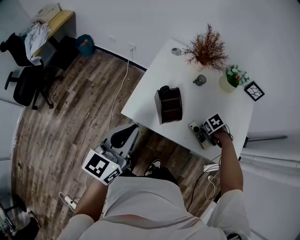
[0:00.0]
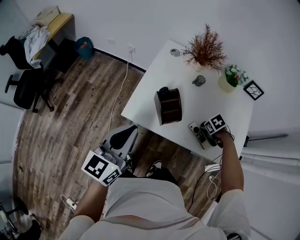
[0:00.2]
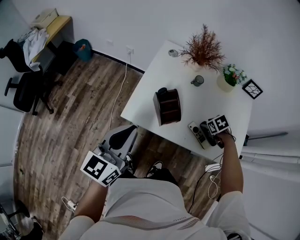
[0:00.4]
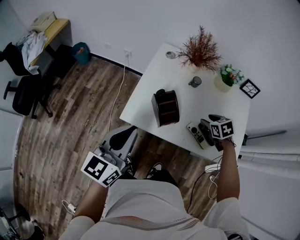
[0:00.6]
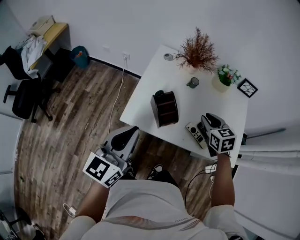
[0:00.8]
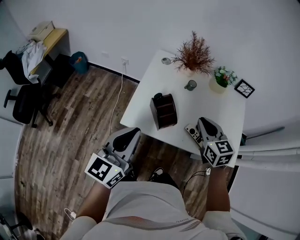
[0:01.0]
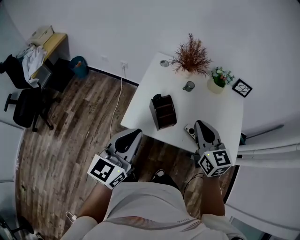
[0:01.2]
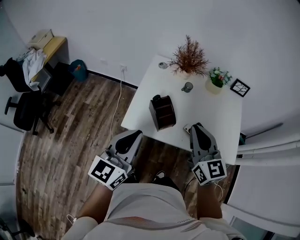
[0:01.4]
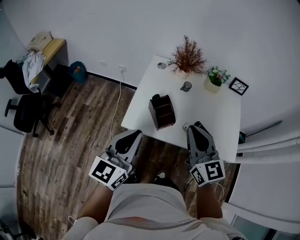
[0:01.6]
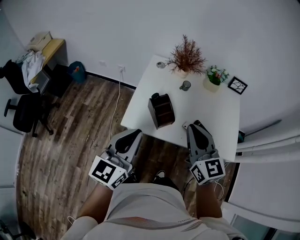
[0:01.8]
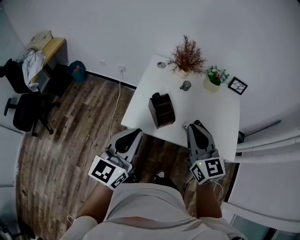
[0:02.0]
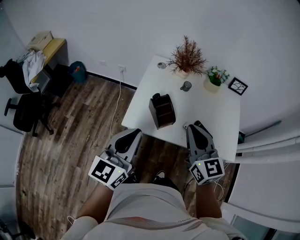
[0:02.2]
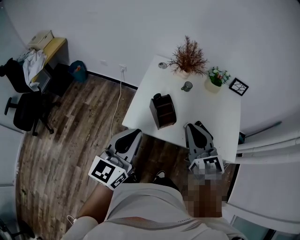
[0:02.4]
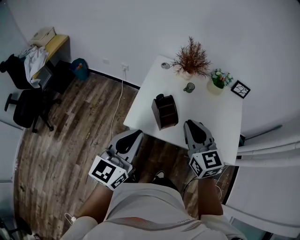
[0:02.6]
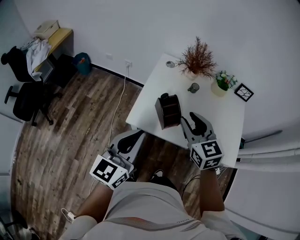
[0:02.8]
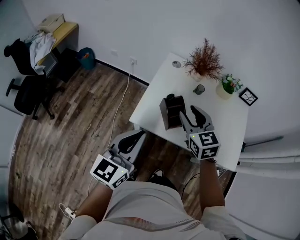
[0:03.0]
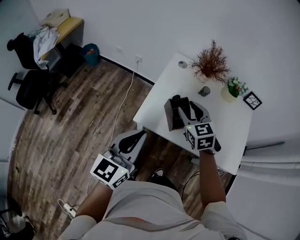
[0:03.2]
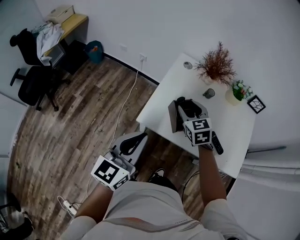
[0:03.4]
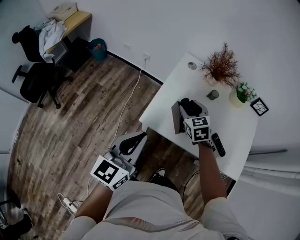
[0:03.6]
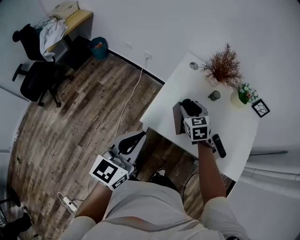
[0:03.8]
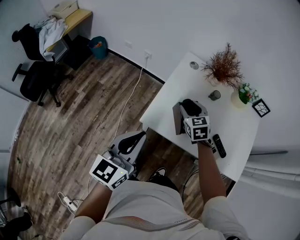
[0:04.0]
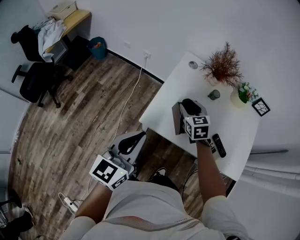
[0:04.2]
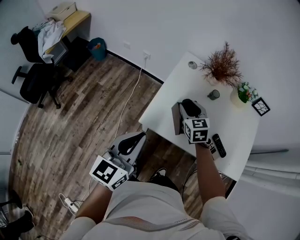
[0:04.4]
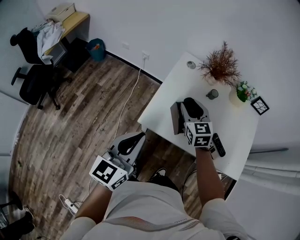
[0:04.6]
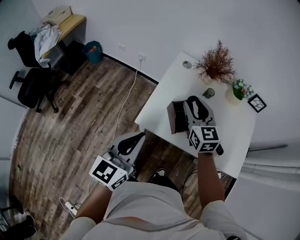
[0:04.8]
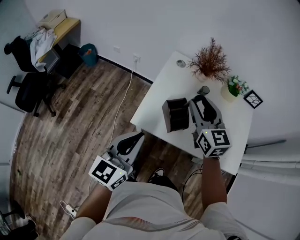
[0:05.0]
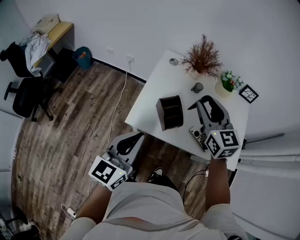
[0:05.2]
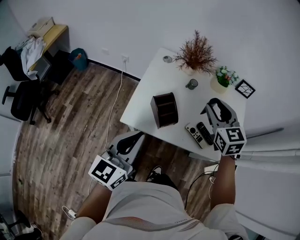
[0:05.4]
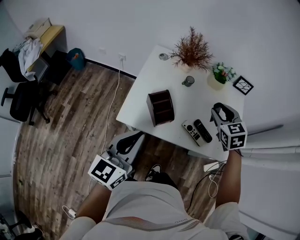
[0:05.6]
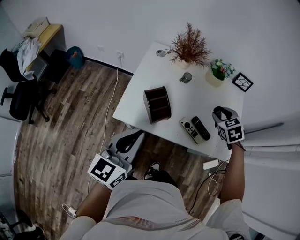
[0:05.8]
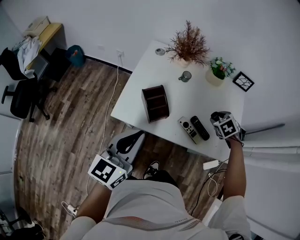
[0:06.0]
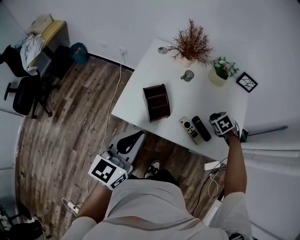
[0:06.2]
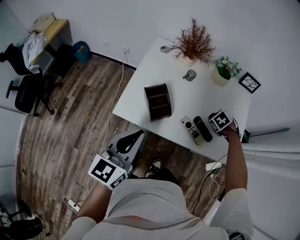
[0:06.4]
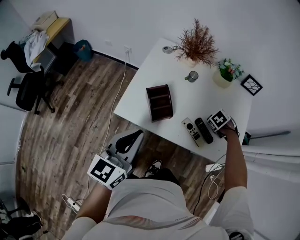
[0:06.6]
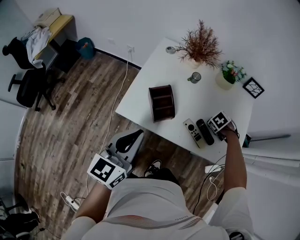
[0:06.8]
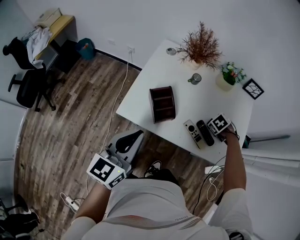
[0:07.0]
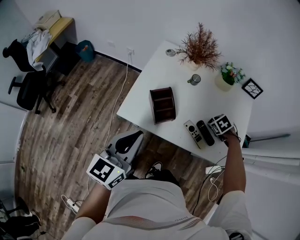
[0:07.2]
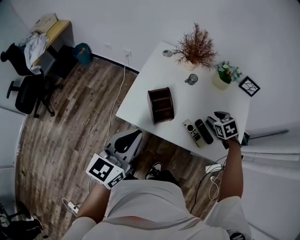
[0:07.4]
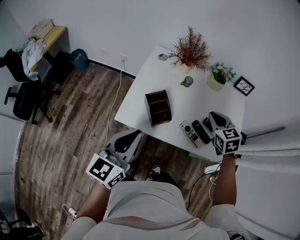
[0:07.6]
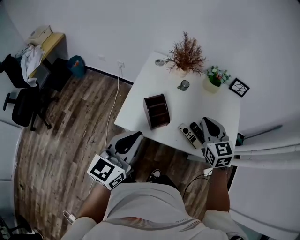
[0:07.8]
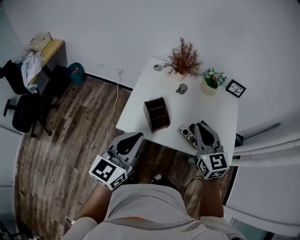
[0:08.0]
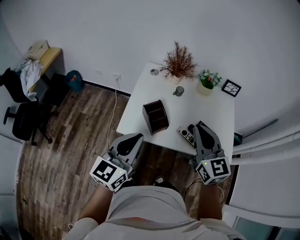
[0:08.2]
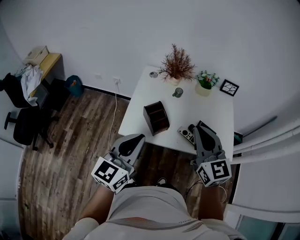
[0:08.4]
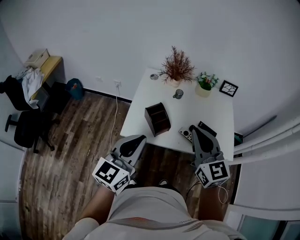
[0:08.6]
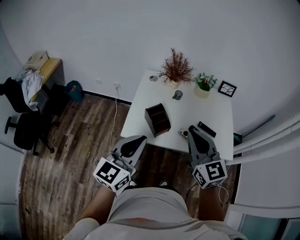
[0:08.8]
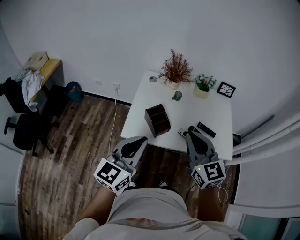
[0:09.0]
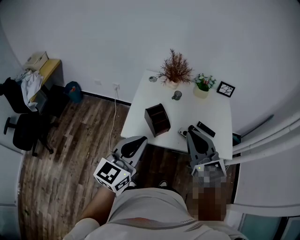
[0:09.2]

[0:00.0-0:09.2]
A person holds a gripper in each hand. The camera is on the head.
0:00.0 to 0:01.6: The left gripper is displaced upward by approximately 5 cm. Meanwhile the right gripper is displaced upward by about 35 cm, angles its fingers upward, by some 80 degrees, and closes its fingers.
0:01.6 to 0:03.0: The right gripper moves forward, downward and to the left, about 15 cm, rotates about 20 degrees, and opens its fingers.
0:03.0 to 0:04.6: The right gripper heads forward and downward, covering approximately 10 cm.
0:04.6 to 0:06.2: The left gripper goes about 15 cm to the right. The right gripper is displaced to the right by about 35 cm, and tilts its fingers approximately 50 degrees downward.
0:06.2 to 0:07.6: The right gripper heads upward, covering some 15 cm, angles its fingers upward, by some 40 degrees, and closes.
0:07.6 to 0:09.2: The left gripper travels upward by roughly 5 cm. Meanwhile the right gripper moves backward, upward and to the left, approximately 25 cm, and tips its fingers upward by roughly 30 degrees.

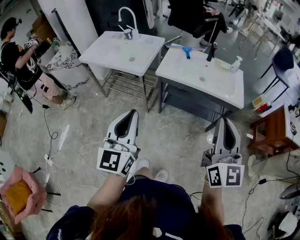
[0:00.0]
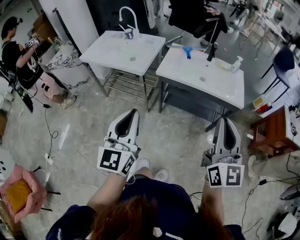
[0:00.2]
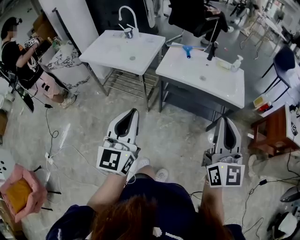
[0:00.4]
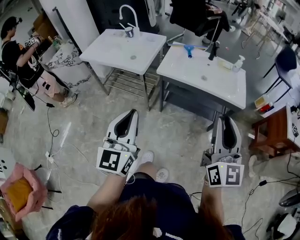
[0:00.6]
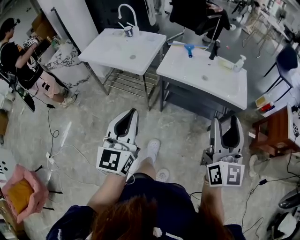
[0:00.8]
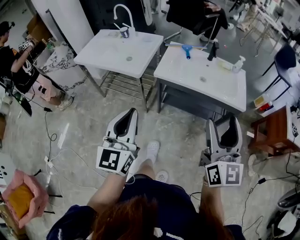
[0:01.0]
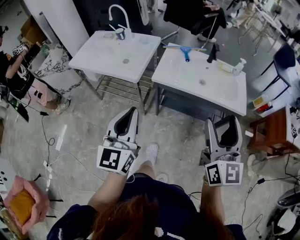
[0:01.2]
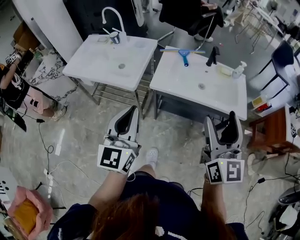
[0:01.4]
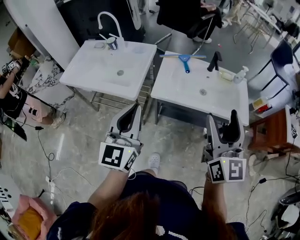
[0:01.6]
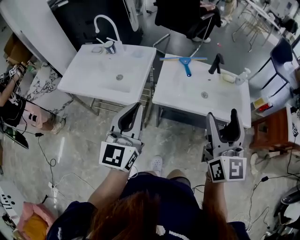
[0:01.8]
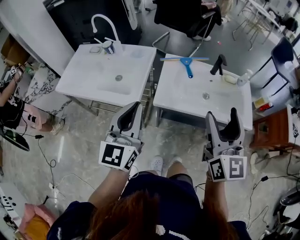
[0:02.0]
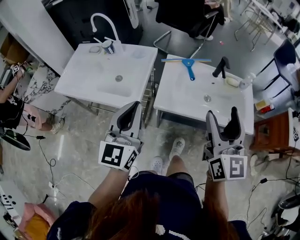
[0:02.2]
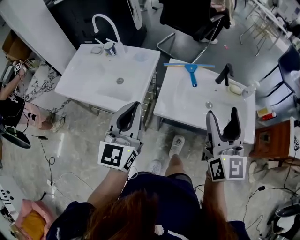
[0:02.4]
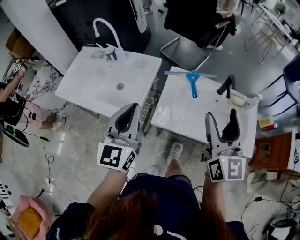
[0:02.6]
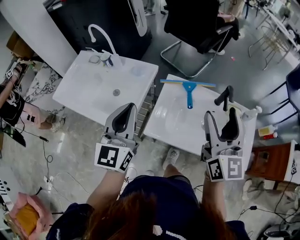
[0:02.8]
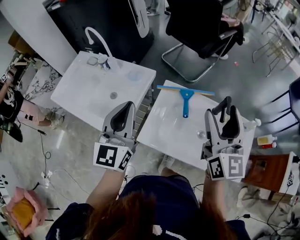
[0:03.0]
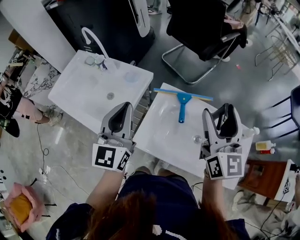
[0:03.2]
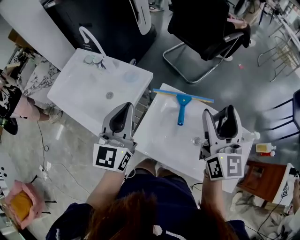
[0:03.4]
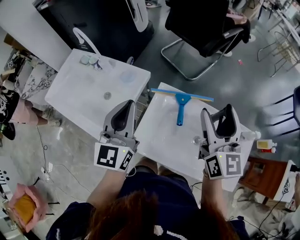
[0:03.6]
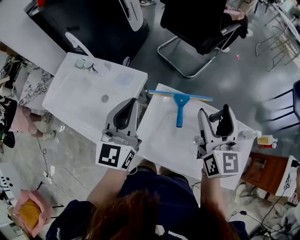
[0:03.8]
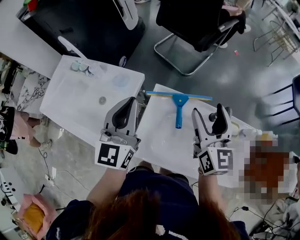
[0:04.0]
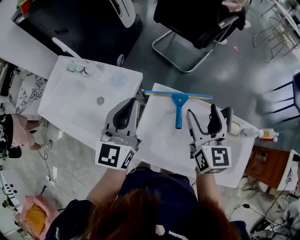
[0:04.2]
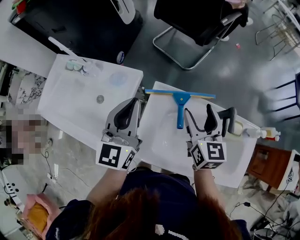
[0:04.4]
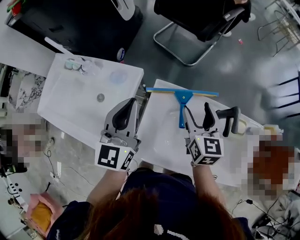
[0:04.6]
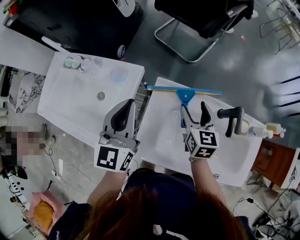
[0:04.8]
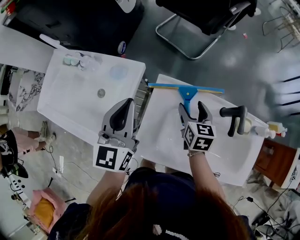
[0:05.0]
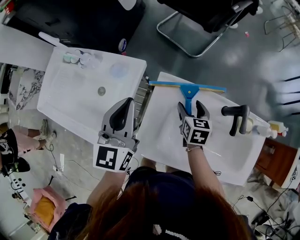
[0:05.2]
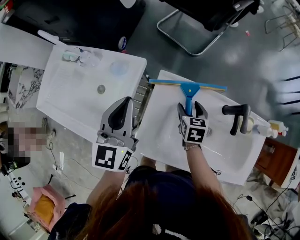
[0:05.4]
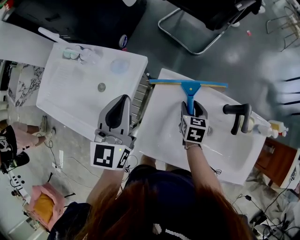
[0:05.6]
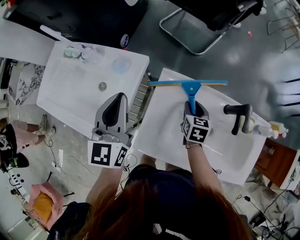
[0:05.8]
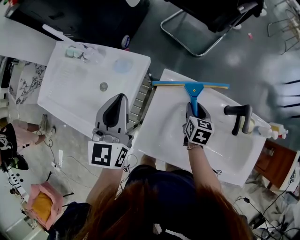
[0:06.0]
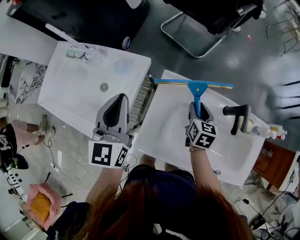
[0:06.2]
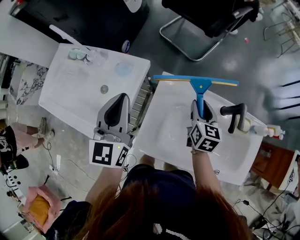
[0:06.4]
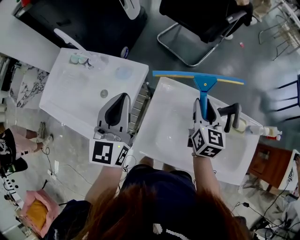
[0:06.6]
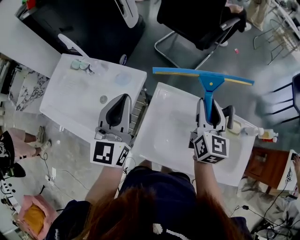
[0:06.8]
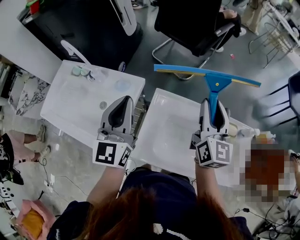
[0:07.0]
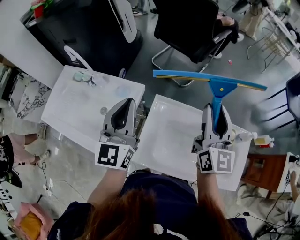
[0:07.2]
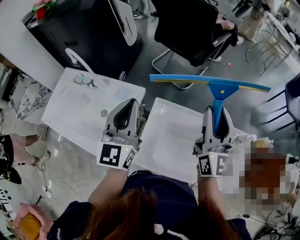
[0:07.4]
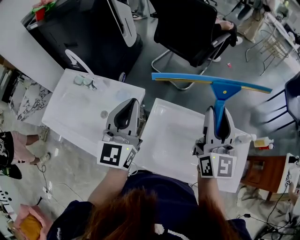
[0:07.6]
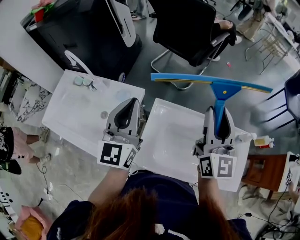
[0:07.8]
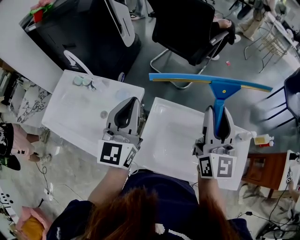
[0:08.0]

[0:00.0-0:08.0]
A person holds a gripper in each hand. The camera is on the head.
0:00.0 to 0:01.6: The two grippers go roughly 25 cm forward. The right gripper opens.
0:01.6 to 0:03.2: Both grippers move forward, some 40 cm.
0:03.2 to 0:04.8: The left gripper heads forward and downward, covering approximately 15 cm, while the right gripper shifts about 30 cm downward and forward, and tips its fingers downward by about 30 degrees.
0:04.8 to 0:06.4: The right gripper moves approximately 10 cm downward and comes back, and closes.
0:06.4 to 0:08.0: The right gripper moves upward, approximately 30 cm, and points its fingers approximately 40 degrees further upward; the left gripper is displaced upward by some 10 cm.

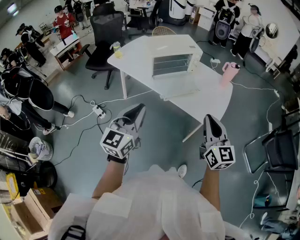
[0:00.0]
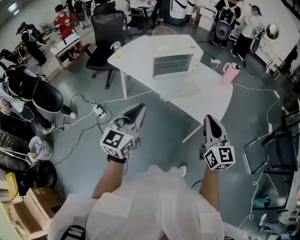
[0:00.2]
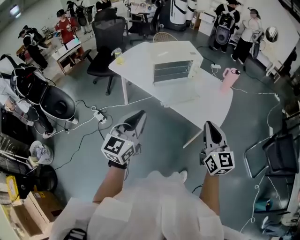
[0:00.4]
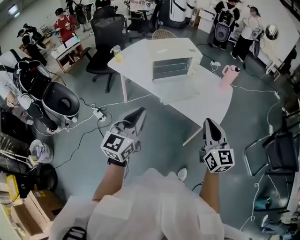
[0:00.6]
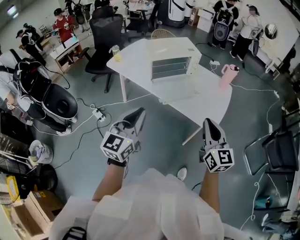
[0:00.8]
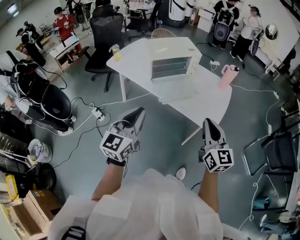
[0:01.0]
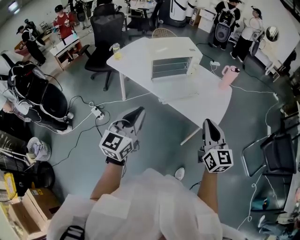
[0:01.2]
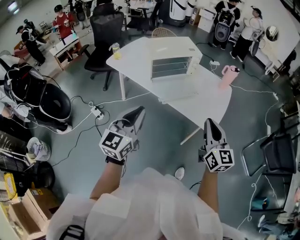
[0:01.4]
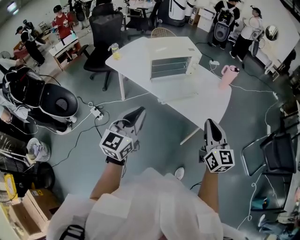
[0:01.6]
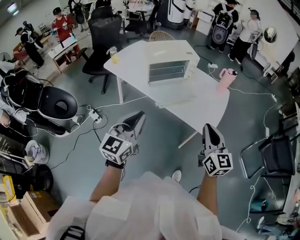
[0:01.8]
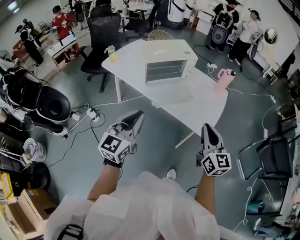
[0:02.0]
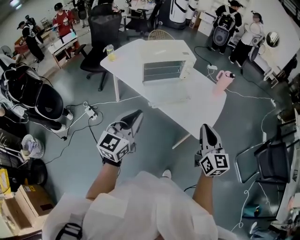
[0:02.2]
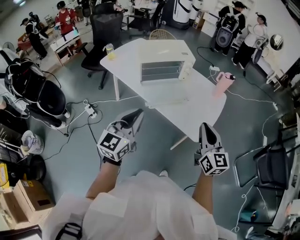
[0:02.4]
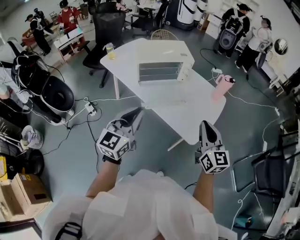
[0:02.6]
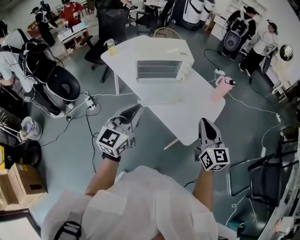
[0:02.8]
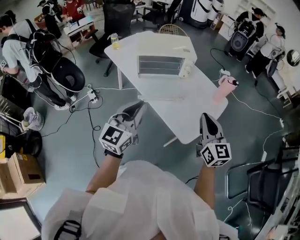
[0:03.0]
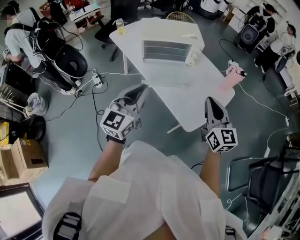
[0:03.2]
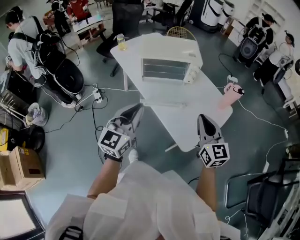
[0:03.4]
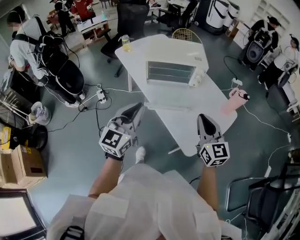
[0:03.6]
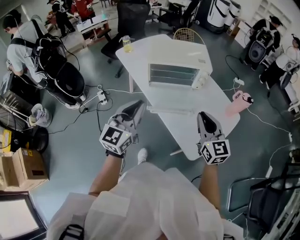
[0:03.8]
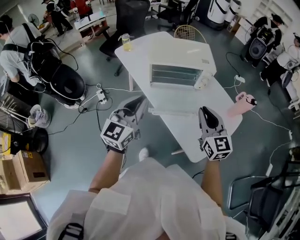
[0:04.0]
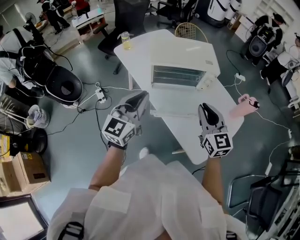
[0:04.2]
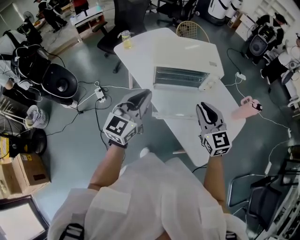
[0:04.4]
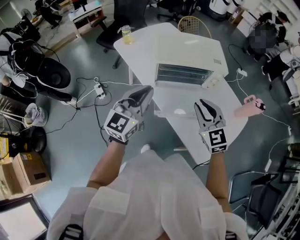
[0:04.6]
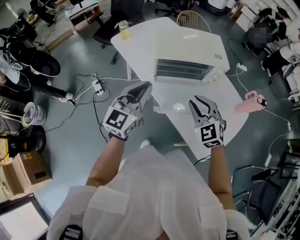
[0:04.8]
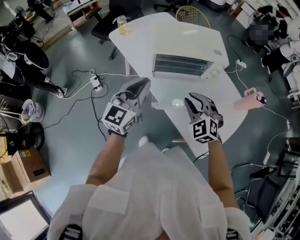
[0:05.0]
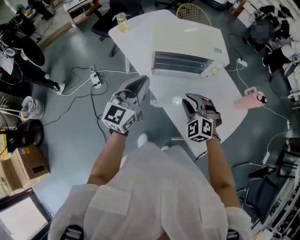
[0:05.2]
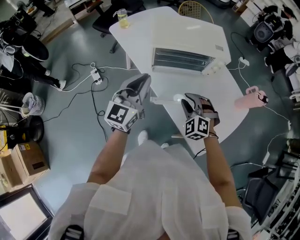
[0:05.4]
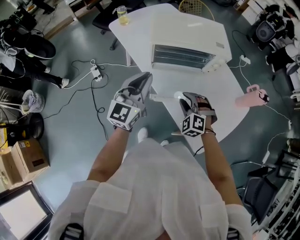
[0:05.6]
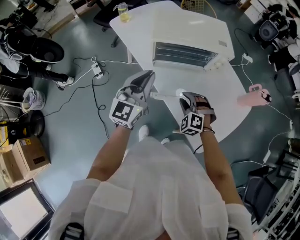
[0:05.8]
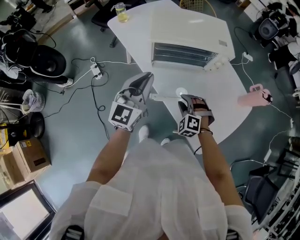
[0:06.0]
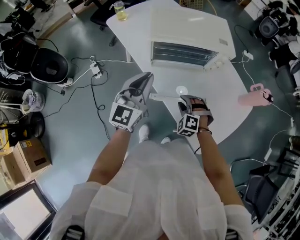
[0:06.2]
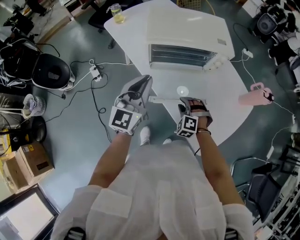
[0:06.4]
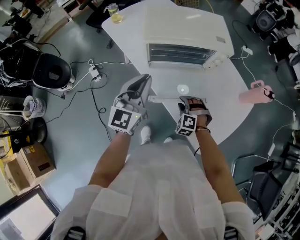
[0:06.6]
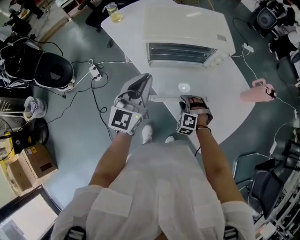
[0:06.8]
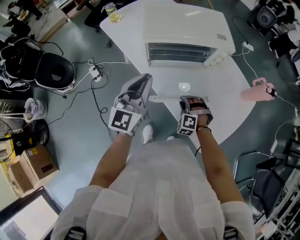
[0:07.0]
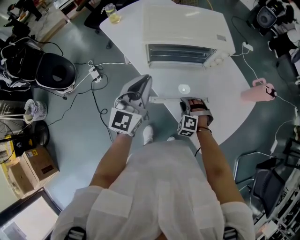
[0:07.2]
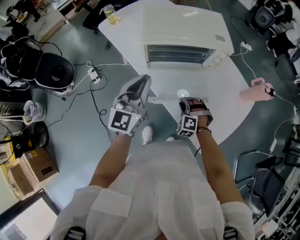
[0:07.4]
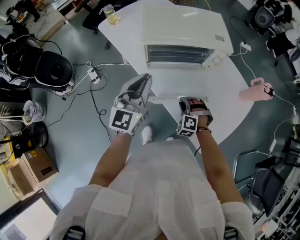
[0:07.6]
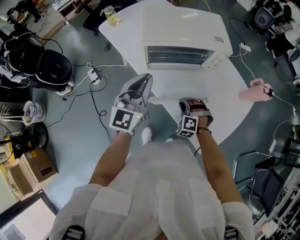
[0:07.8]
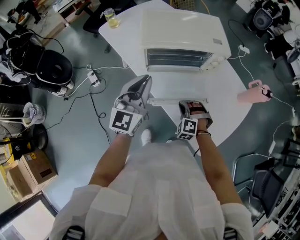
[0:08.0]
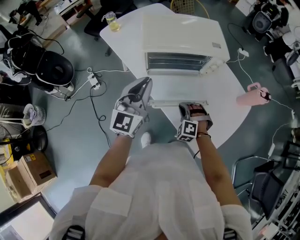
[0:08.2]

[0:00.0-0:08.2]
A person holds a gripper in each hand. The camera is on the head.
0:00.0 to 0:01.6: There are only small adjustments of the grippers.
0:01.6 to 0:03.2: The left gripper travels to the right and forward by roughly 20 cm; the right gripper goes about 25 cm forward and to the right, and changes its angle by about 20 degrees.
0:03.2 to 0:05.0: The left gripper travels forward and to the left by about 25 cm; the right gripper shifts some 35 cm forward, to the left and downward, twists some 50 degrees counterclockwise, seen from behind, and opens up.
0:05.0 to 0:06.6: The left gripper moves roughly 5 cm. The right gripper heads downward, covering approximately 20 cm, and rotates about 30 degrees.
0:06.6 to 0:08.2: The right gripper closes.
